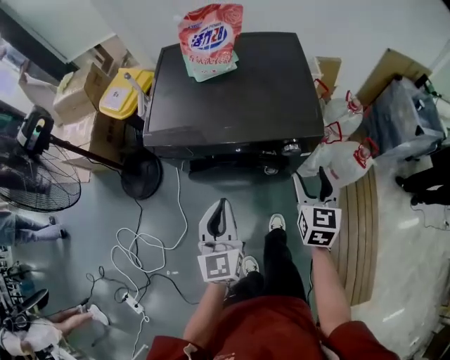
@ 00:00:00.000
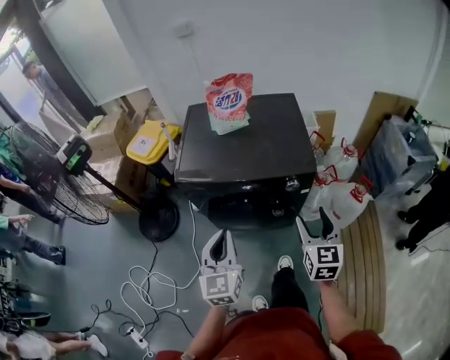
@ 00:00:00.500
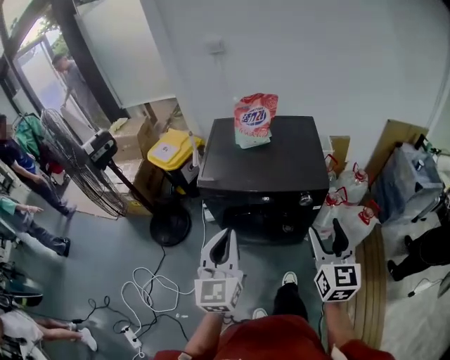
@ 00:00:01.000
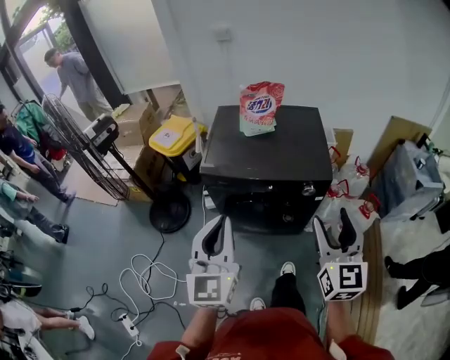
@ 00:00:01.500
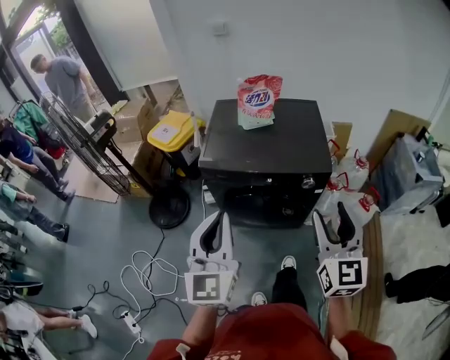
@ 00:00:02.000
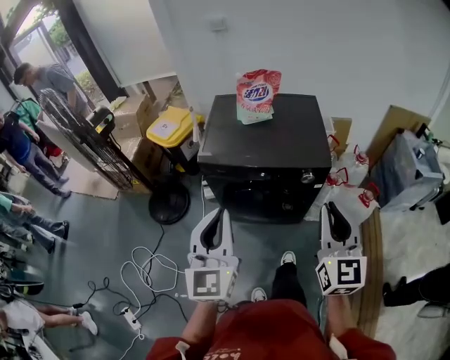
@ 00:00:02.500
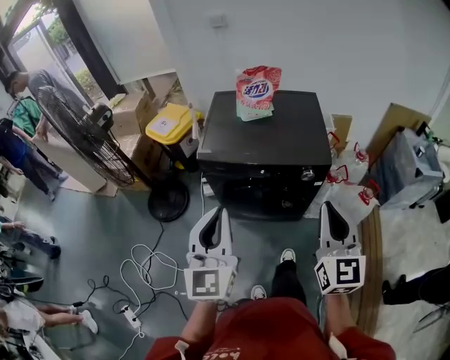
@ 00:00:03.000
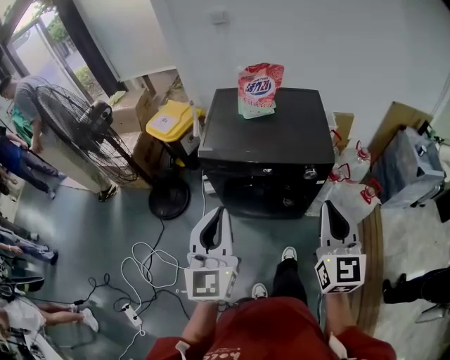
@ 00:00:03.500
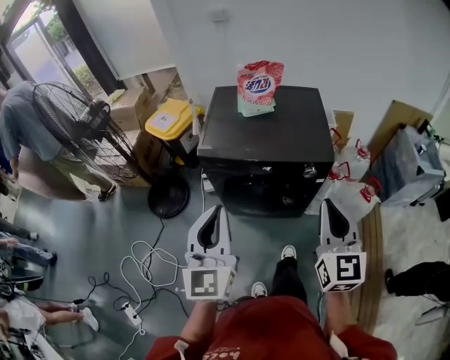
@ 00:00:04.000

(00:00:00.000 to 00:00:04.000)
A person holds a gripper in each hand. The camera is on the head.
00:00:00.000 - 00:00:02.000: Both grippers travel together upward and backward, approximately 30 cm. The right gripper changes its angle by approximately 20 degrees.
00:00:02.000 - 00:00:04.000: The right gripper closes its fingers.

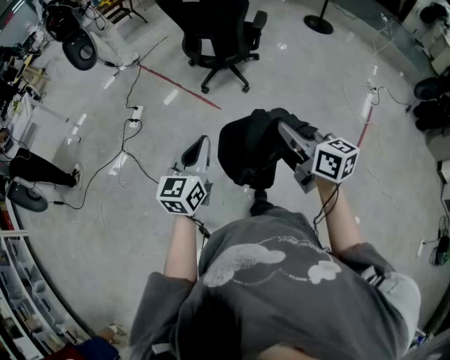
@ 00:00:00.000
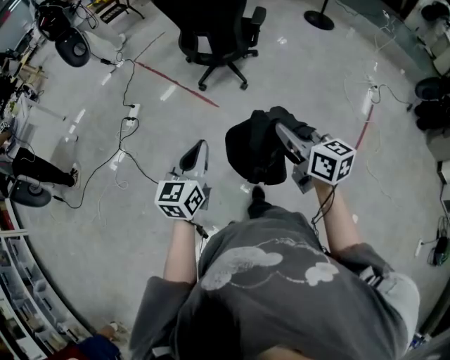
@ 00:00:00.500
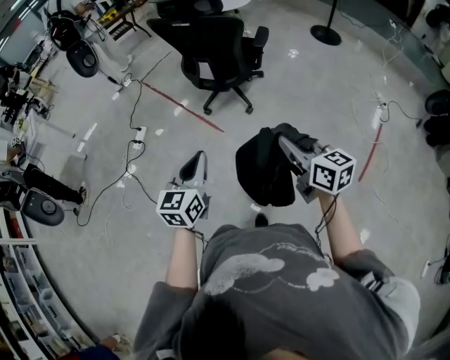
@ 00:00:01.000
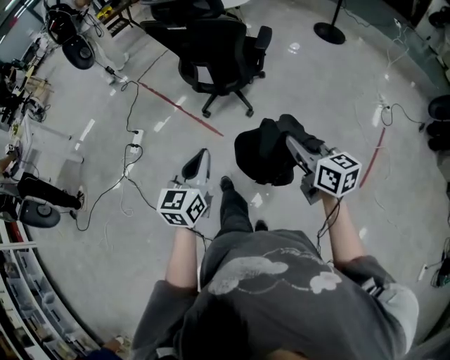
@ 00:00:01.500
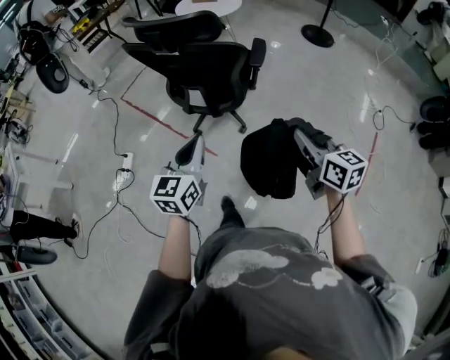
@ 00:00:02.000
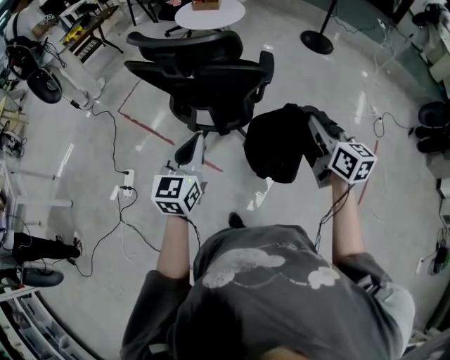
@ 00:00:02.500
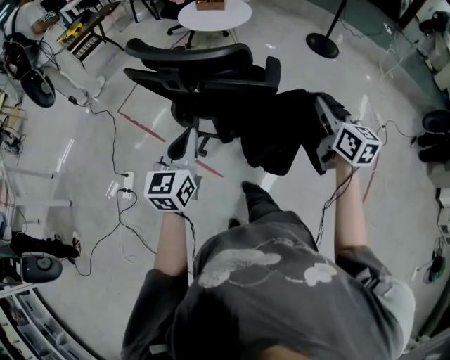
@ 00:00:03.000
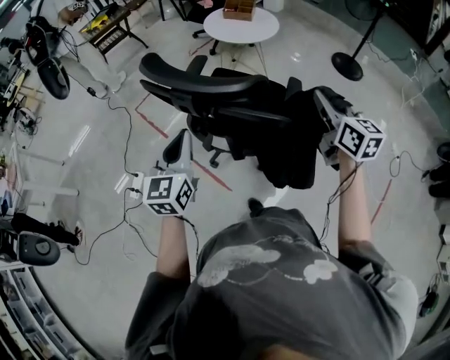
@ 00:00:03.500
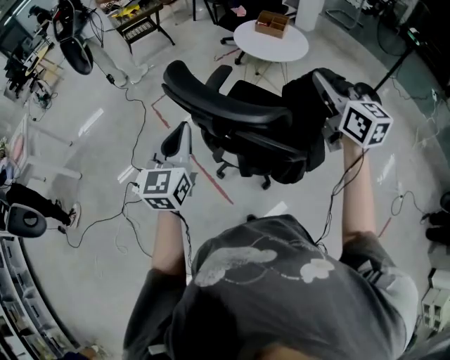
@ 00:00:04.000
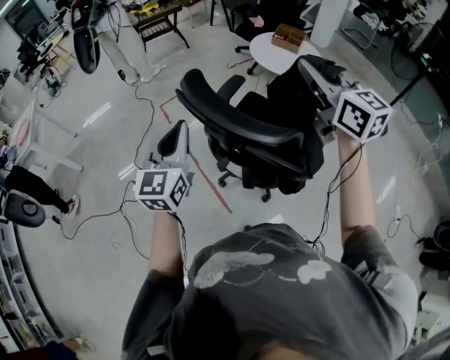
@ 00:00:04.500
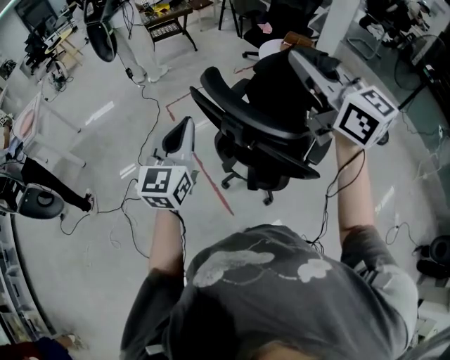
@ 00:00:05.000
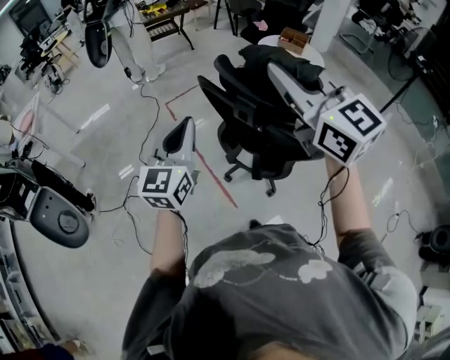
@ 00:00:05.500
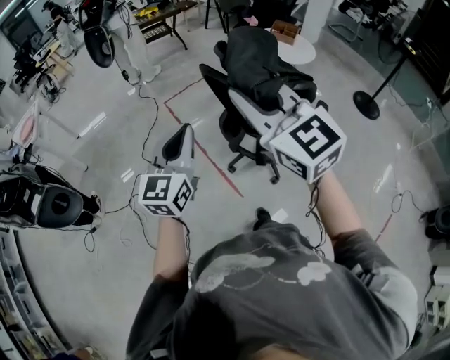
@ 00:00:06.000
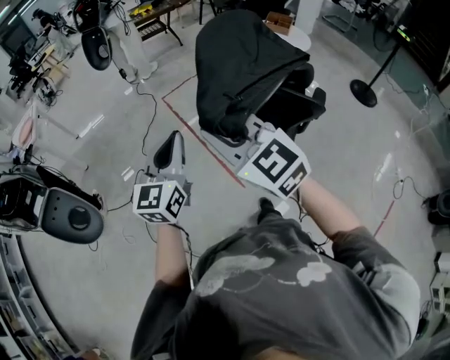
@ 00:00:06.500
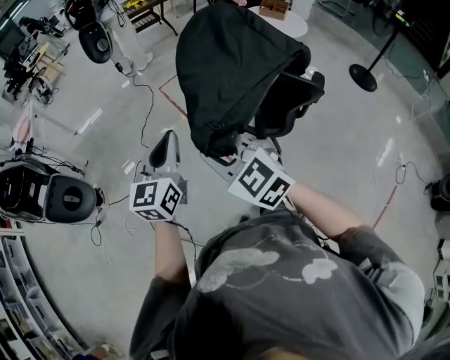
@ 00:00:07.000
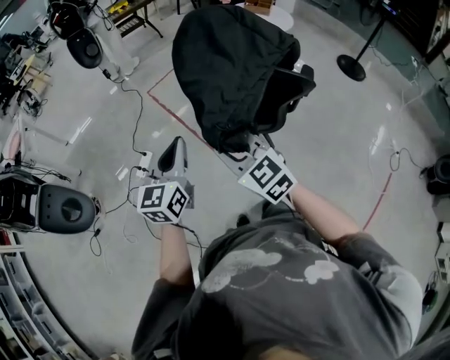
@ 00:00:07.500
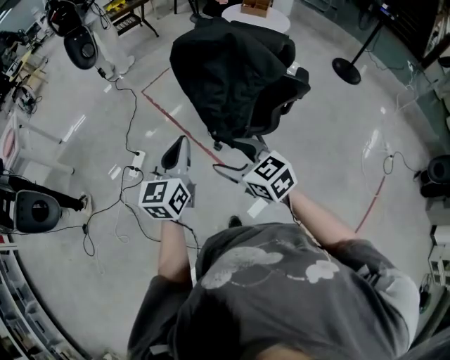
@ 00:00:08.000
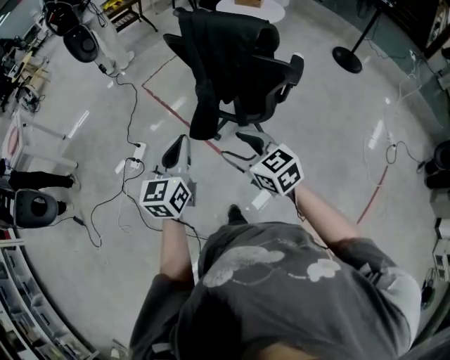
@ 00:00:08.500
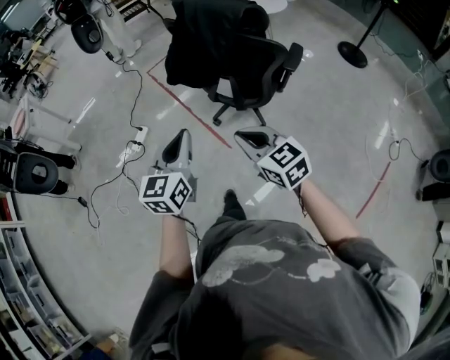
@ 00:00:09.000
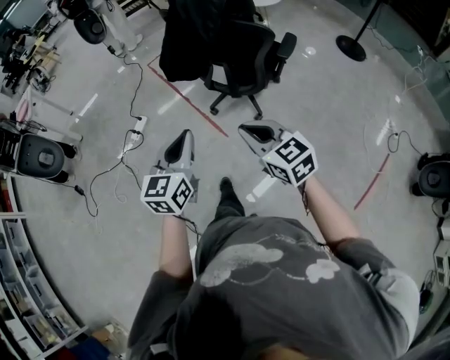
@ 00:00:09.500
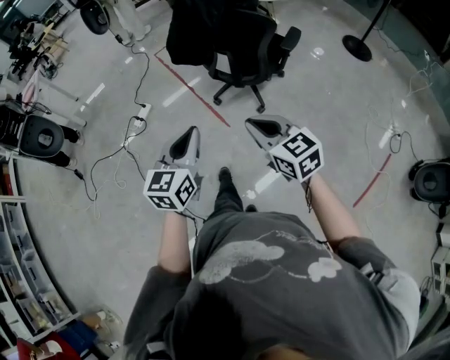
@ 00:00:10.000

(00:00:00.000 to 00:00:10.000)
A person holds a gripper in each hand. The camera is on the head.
00:00:00.000 - 00:00:02.000: Both grippers are carried forward, about 40 cm.
00:00:02.000 - 00:00:04.000: The left gripper goes about 35 cm forward and to the left, and rotates about 20 degrees. Meanwhile the right gripper moves forward, approximately 50 cm, and rotates approximately 30 degrees.
00:00:04.000 - 00:00:06.000: The right gripper heads to the left, covering roughly 35 cm, and changes its angle by approximately 30 degrees, while the left gripper moves to the left and backward, approximately 20 cm.
00:00:06.000 - 00:00:08.000: The left gripper moves downward and backward, about 10 cm. Meanwhile the right gripper goes some 25 cm downward, rotates about 30 degrees, and opens.
00:00:08.000 - 00:00:10.000: The left gripper moves backward, approximately 30 cm; the right gripper heads backward and to the right, covering roughly 30 cm, and closes its fingers.

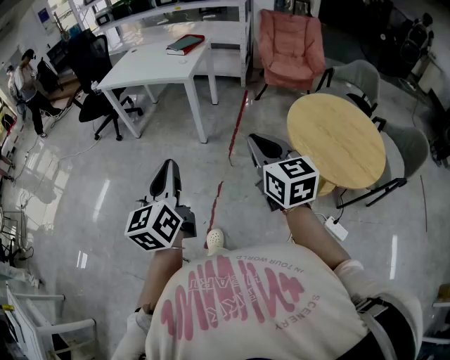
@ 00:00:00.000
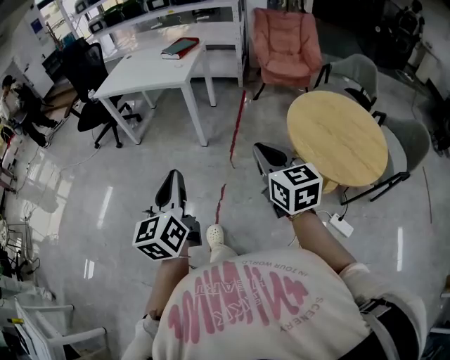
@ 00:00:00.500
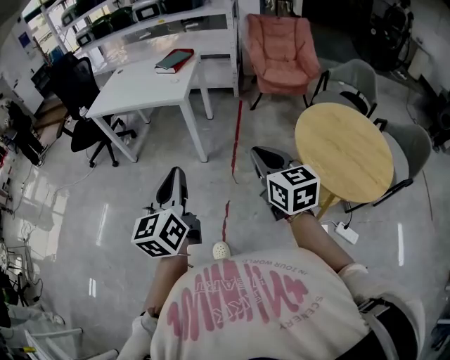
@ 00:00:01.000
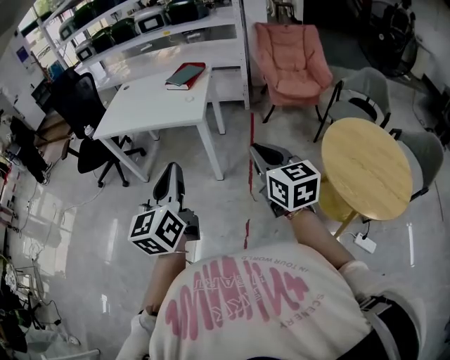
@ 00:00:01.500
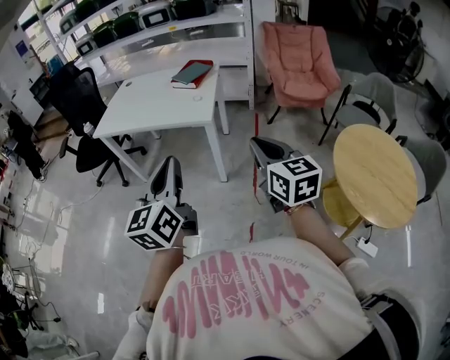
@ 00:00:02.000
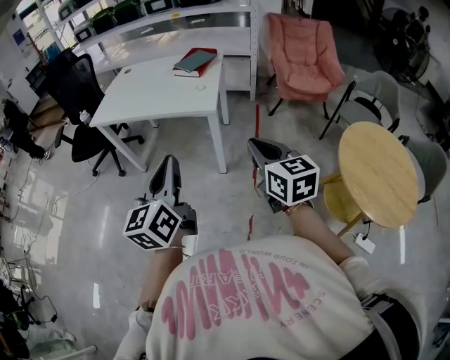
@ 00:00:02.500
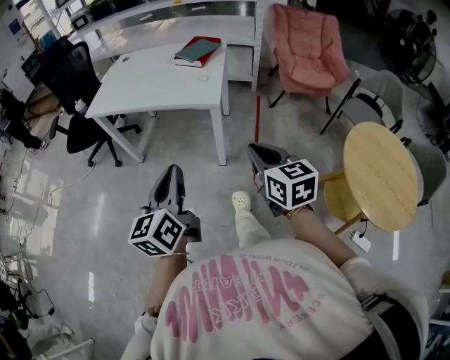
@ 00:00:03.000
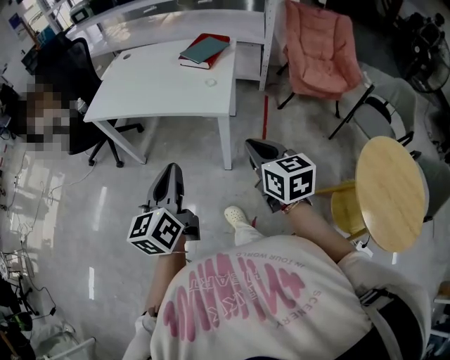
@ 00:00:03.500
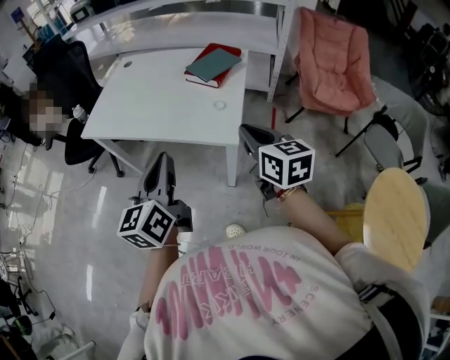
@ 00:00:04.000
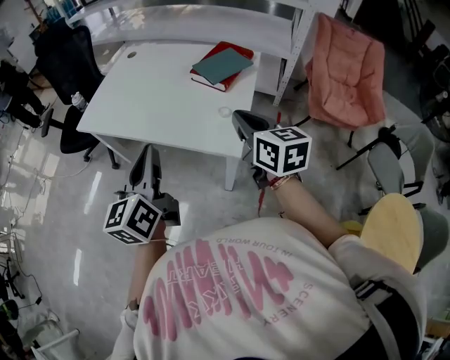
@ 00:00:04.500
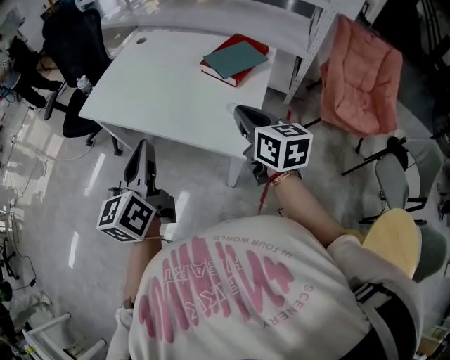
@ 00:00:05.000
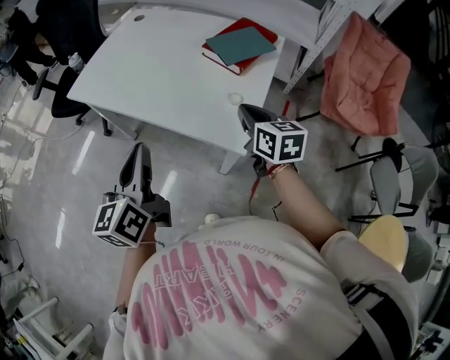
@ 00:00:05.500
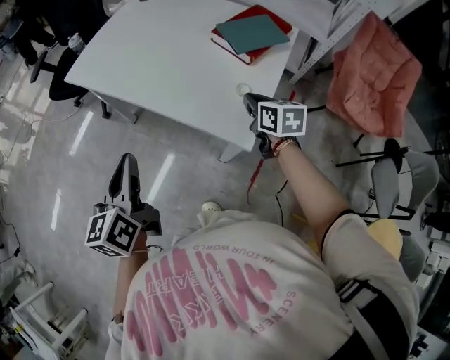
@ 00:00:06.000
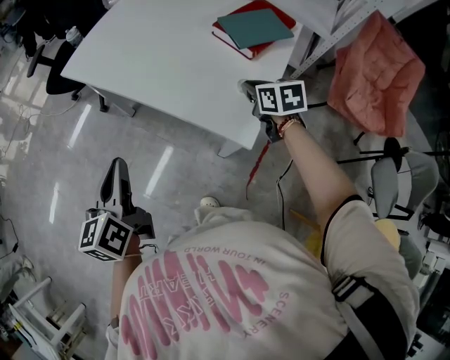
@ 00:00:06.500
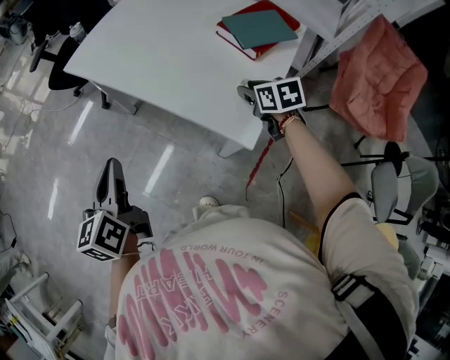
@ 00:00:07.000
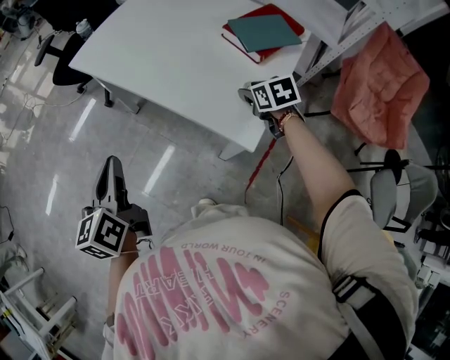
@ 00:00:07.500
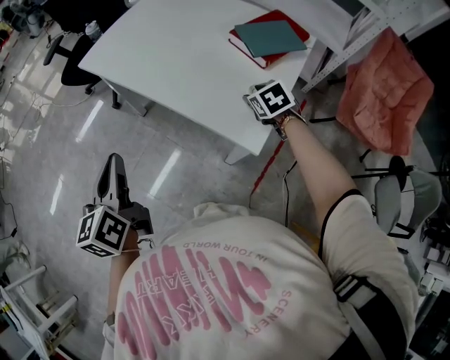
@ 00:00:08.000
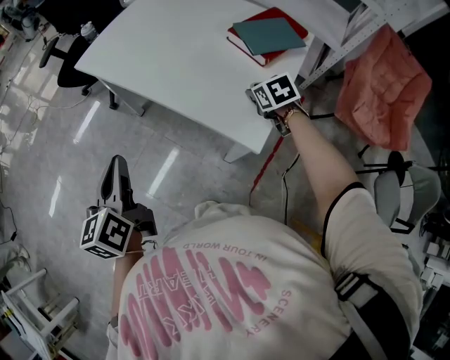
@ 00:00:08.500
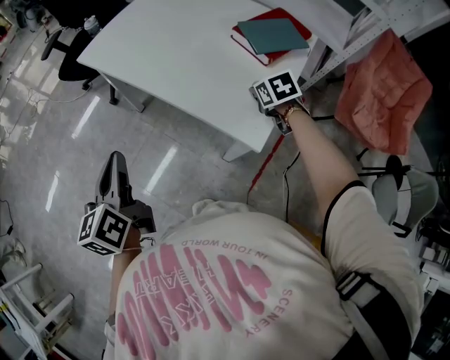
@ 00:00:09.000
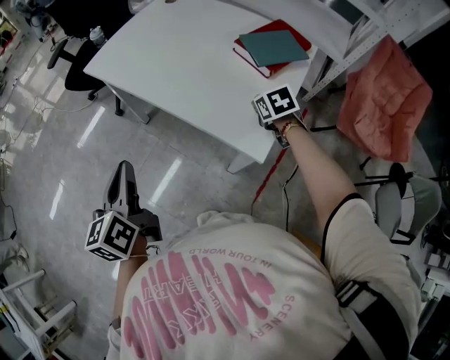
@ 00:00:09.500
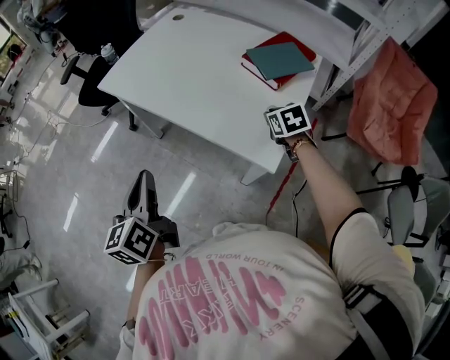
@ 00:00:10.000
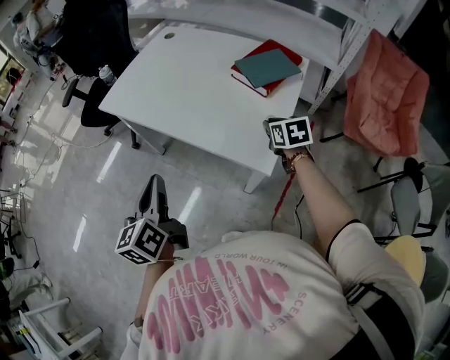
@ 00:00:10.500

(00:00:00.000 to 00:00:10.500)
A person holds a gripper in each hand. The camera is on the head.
00:00:00.000 - 00:00:02.000: Both grippers move forward and to the left, roughly 40 cm.
00:00:02.000 - 00:00:04.000: The grippers both shift forward by roughly 35 cm.
00:00:04.000 - 00:00:06.500: The left gripper moves downward, forward and to the left, roughly 20 cm, and changes its angle by roughly 30 degrees. The right gripper shifts approximately 35 cm forward and downward, and swivels roughly 30 degrees.
00:00:06.500 - 00:00:08.500: The right gripper swivels roughly 20 degrees, and opens up.
00:00:08.500 - 00:00:10.500: The right gripper shifts some 5 cm upward, and changes its angle by roughly 20 degrees.

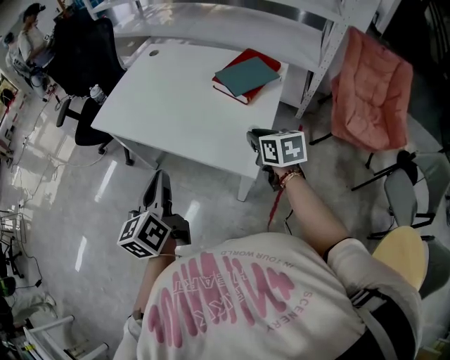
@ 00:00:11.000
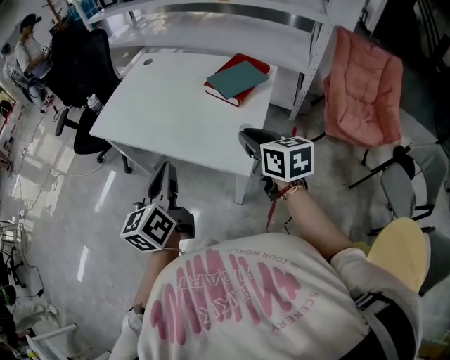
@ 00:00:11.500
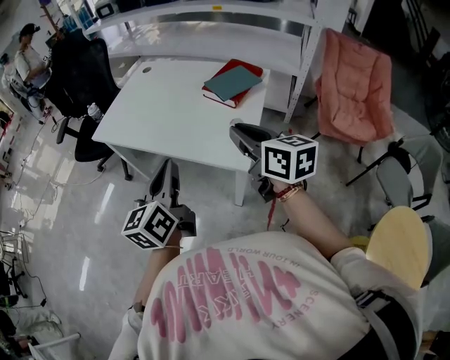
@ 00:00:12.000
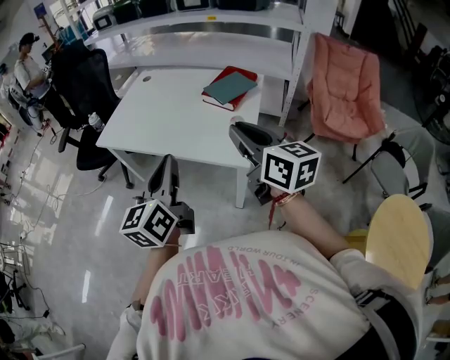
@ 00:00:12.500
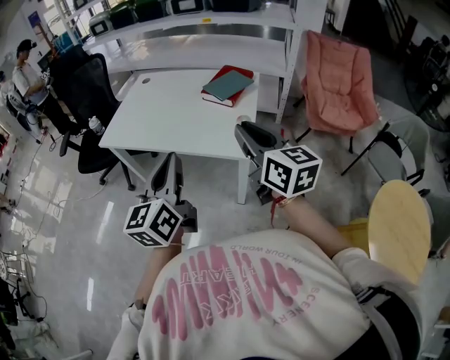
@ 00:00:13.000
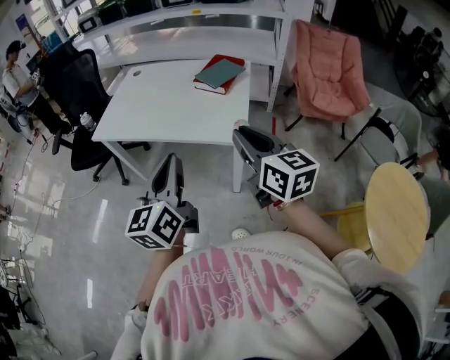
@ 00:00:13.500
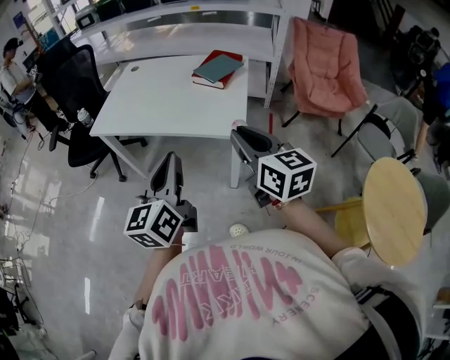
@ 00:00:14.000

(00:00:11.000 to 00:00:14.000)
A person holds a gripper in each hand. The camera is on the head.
00:00:11.000 - 00:00:12.500: The left gripper moves upward and backward, some 15 cm. The right gripper travels upward and backward by about 25 cm, and angles its fingers upward, by roughly 30 degrees.
00:00:12.500 - 00:00:14.000: The two grippers go about 10 cm backward.
